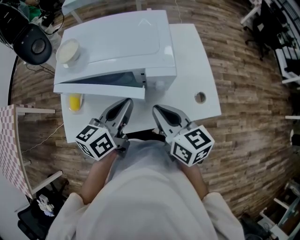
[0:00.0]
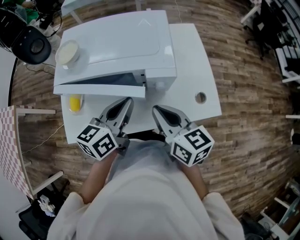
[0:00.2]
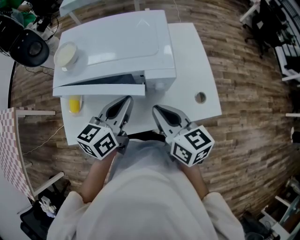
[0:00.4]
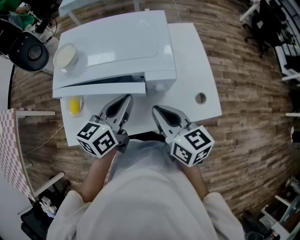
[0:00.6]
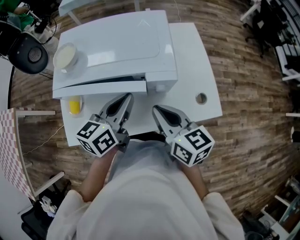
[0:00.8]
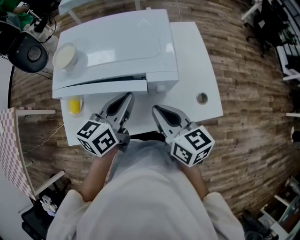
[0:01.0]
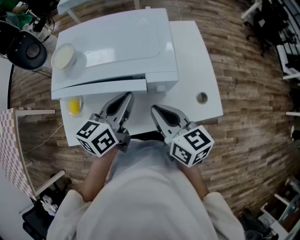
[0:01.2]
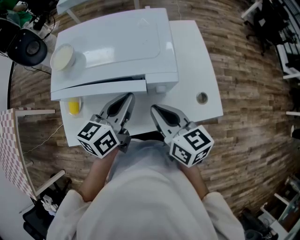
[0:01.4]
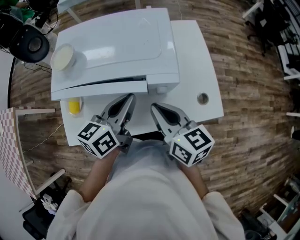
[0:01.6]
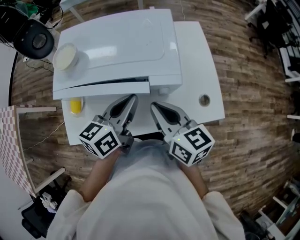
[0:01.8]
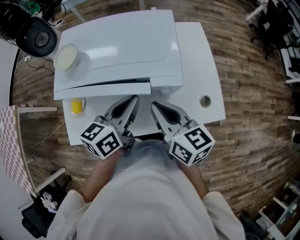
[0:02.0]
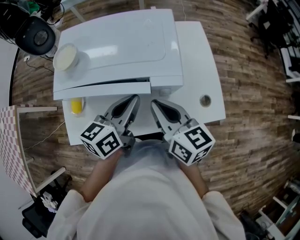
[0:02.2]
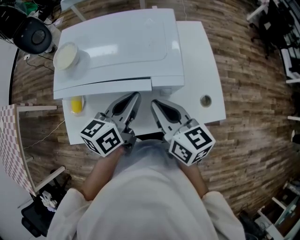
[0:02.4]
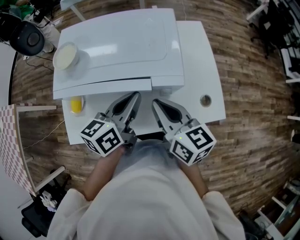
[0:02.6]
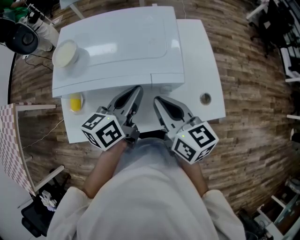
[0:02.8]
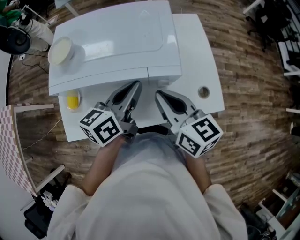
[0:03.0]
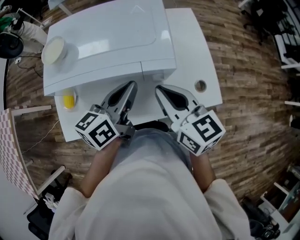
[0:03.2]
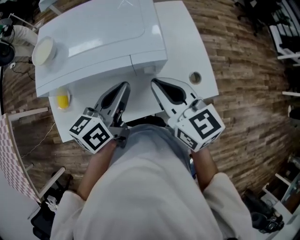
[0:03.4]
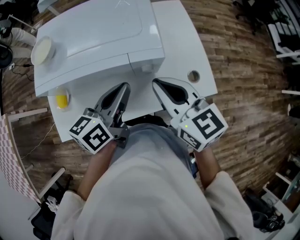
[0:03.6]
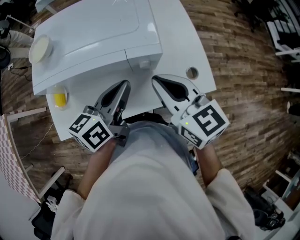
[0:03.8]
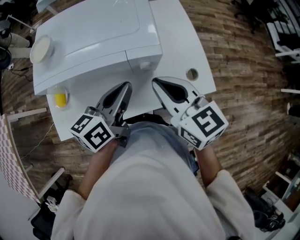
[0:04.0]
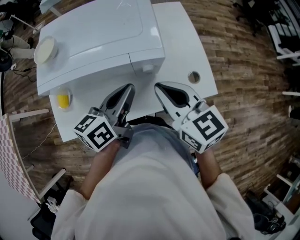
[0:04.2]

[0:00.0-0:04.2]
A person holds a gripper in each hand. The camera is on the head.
0.0 to 1.4 s: The grippers make only small movements.
1.4 to 2.8 s: There are only small adjustments of the grippers.
2.8 to 4.2 s: The right gripper changes place by approximately 5 cm; the left gripper moves backward, about 5 cm.

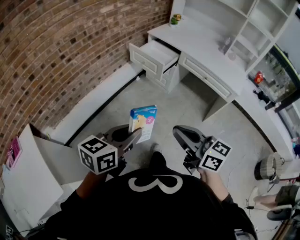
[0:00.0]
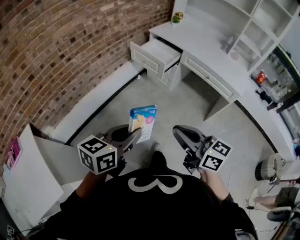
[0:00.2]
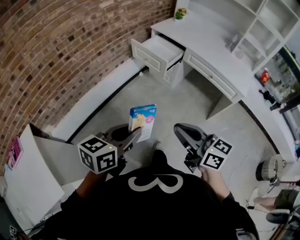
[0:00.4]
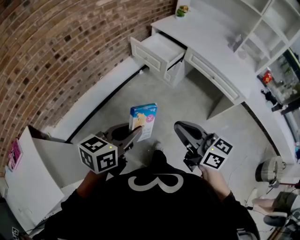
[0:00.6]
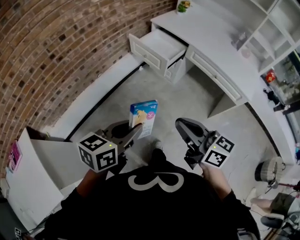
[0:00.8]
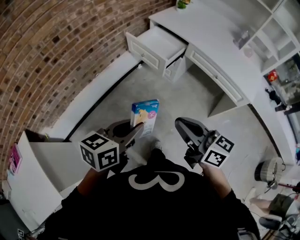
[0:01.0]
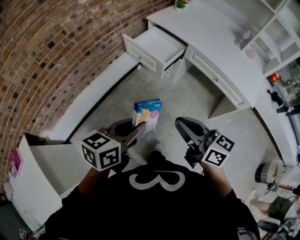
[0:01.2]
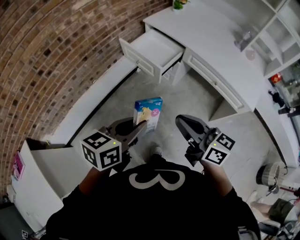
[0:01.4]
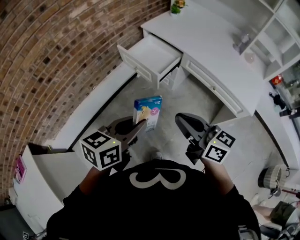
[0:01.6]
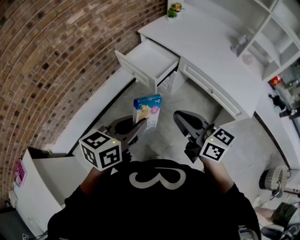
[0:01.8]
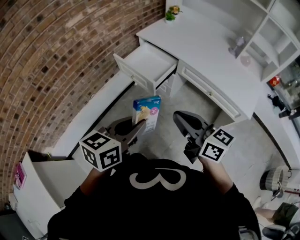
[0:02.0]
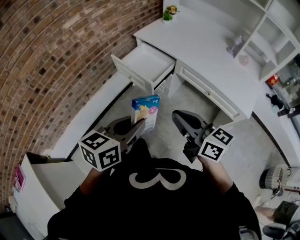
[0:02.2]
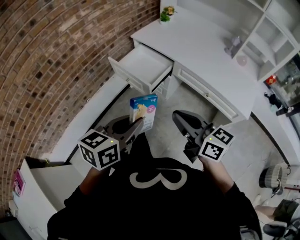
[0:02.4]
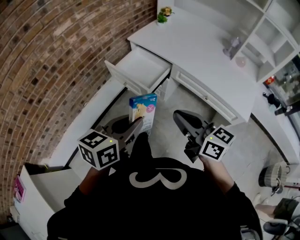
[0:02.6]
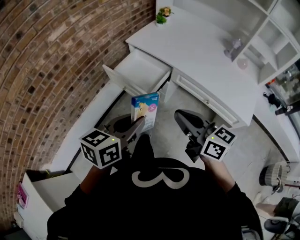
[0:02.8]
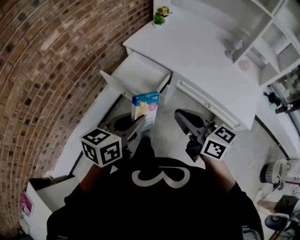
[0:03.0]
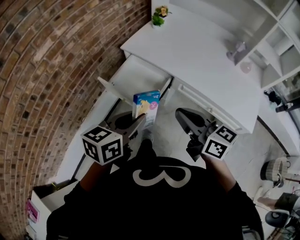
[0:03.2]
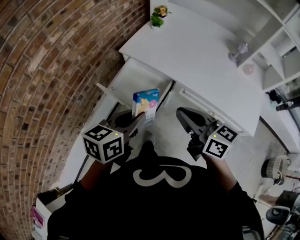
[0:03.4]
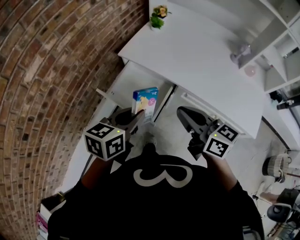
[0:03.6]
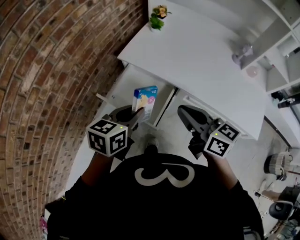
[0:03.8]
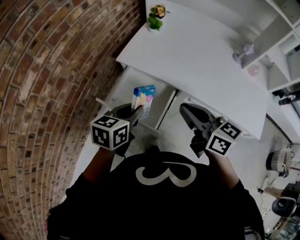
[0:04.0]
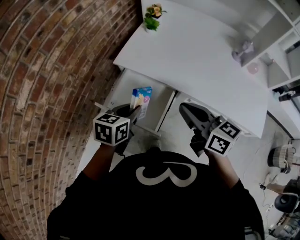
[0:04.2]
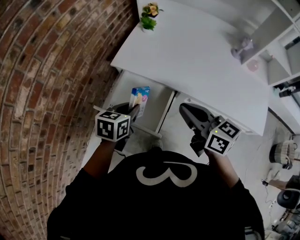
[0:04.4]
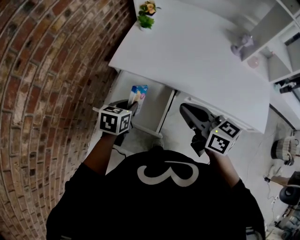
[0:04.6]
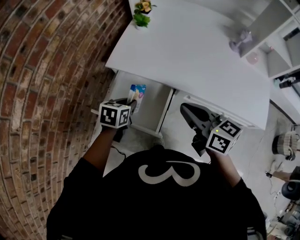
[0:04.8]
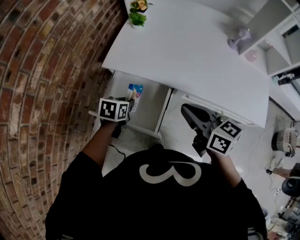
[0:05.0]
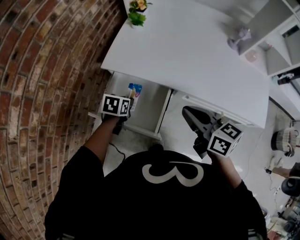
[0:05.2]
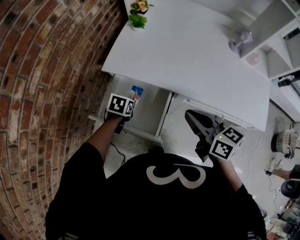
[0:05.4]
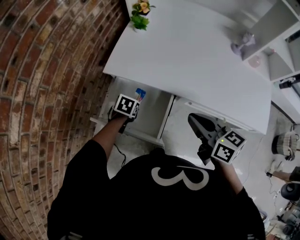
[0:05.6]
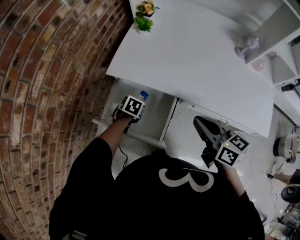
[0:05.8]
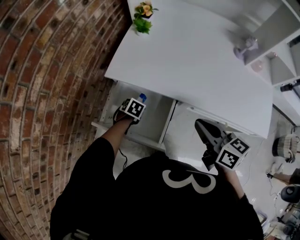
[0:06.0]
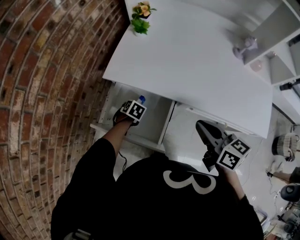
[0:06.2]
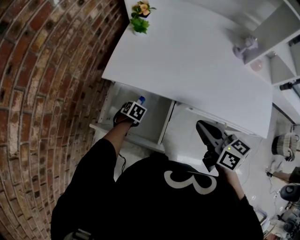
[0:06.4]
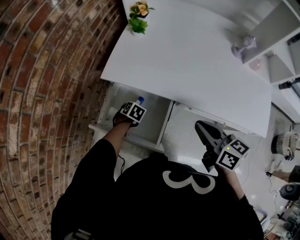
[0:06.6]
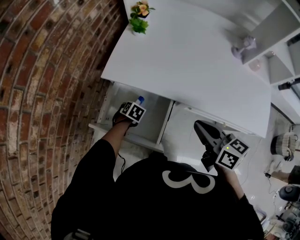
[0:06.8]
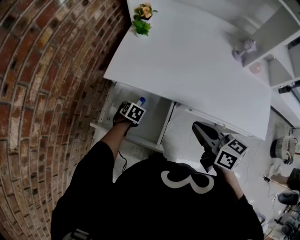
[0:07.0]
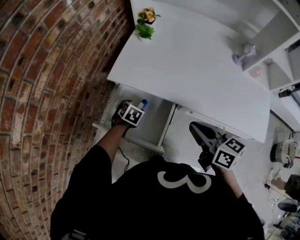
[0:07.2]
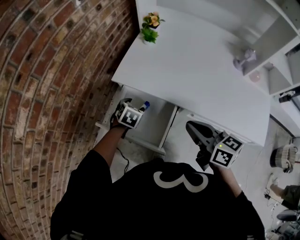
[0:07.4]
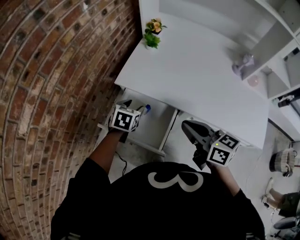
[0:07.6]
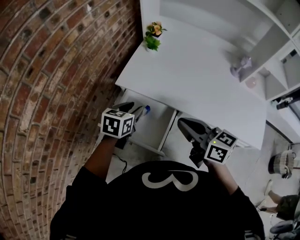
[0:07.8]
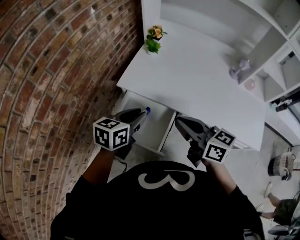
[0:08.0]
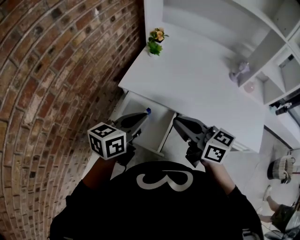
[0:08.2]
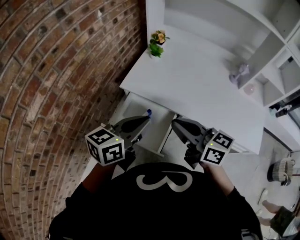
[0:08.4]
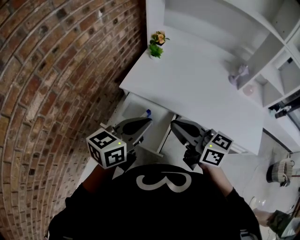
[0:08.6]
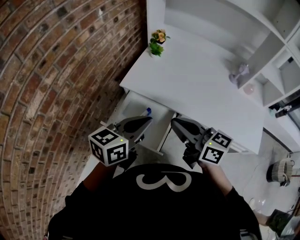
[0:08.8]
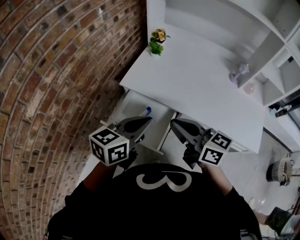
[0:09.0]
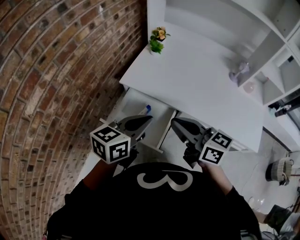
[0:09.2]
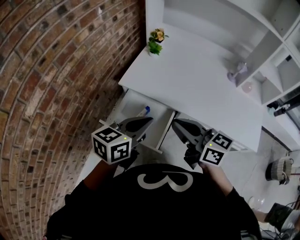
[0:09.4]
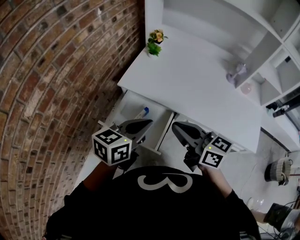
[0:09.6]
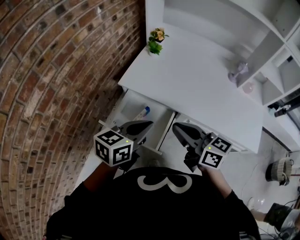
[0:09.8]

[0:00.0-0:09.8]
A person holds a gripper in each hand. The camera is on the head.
0.0 to 1.4 s: The left gripper shifts approximately 25 cm forward and to the right. Meanwhile the right gripper travels forward by roughly 25 cm.
1.4 to 2.8 s: The two grippers go about 15 cm forward.
2.8 to 4.2 s: The grippers both shift forward by some 30 cm. The left gripper changes its angle by roughly 20 degrees.
4.2 to 5.6 s: The left gripper goes roughly 25 cm downward and forward, and angles its fingers downward, by approximately 30 degrees, while the right gripper is displaced downward by some 5 cm.
5.6 to 7.0 s: The left gripper opens its fingers.
7.0 to 8.4 s: The right gripper is displaced upward and to the left by approximately 15 cm, and swivels about 20 degrees, while the left gripper heads upward, covering approximately 40 cm, points its fingers approximately 60 degrees further upward, and closes its fingers.
8.4 to 9.8 s: The grippers stay close to where they were, moving slightly.

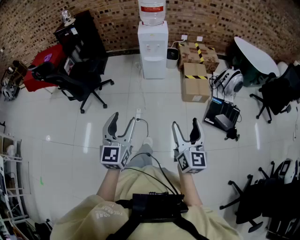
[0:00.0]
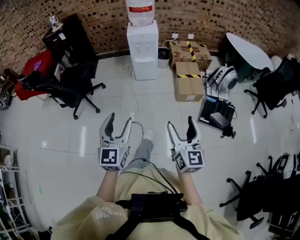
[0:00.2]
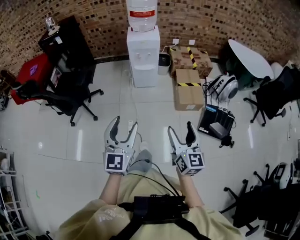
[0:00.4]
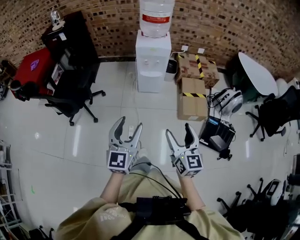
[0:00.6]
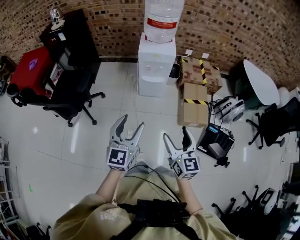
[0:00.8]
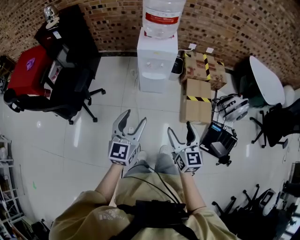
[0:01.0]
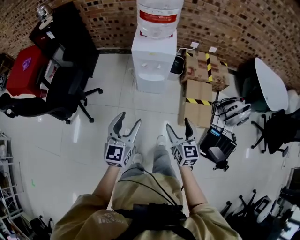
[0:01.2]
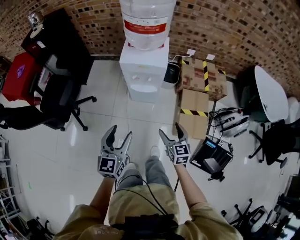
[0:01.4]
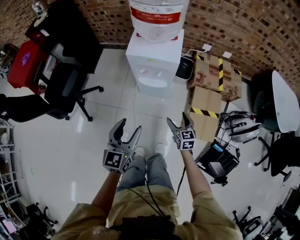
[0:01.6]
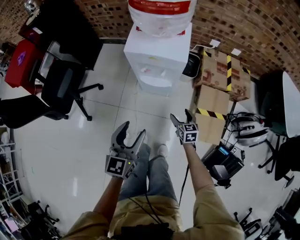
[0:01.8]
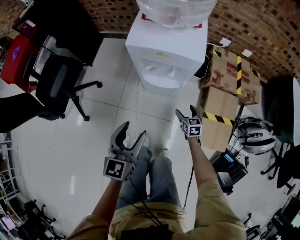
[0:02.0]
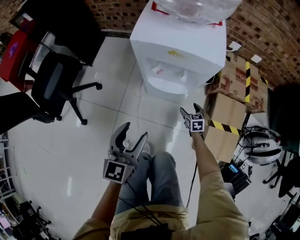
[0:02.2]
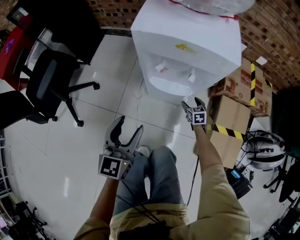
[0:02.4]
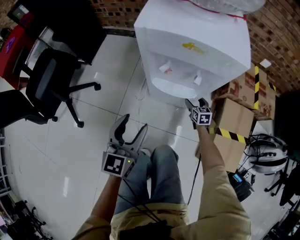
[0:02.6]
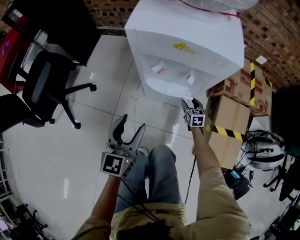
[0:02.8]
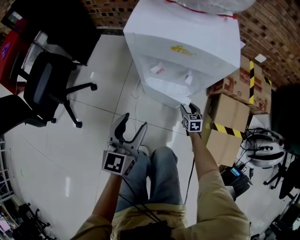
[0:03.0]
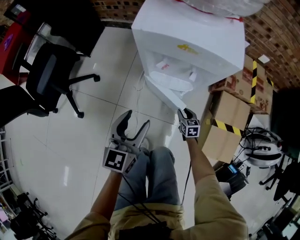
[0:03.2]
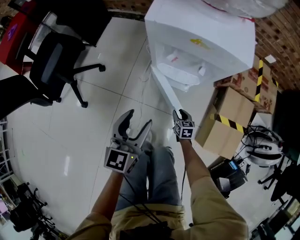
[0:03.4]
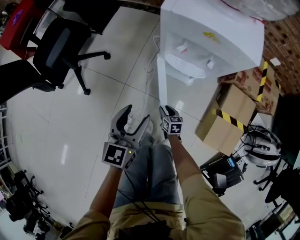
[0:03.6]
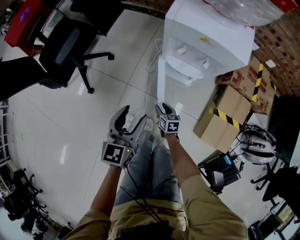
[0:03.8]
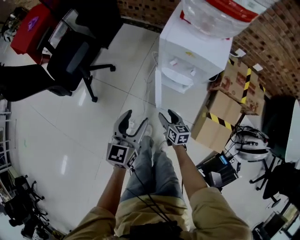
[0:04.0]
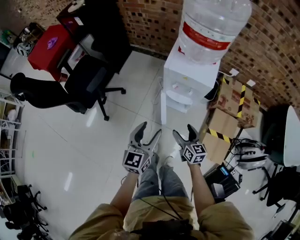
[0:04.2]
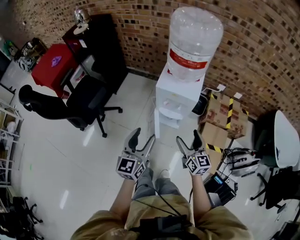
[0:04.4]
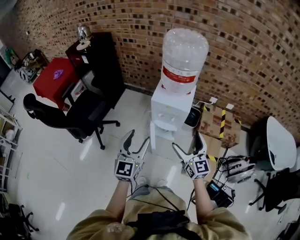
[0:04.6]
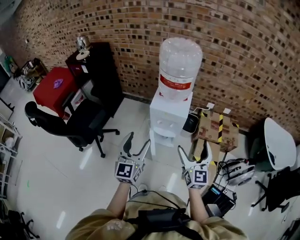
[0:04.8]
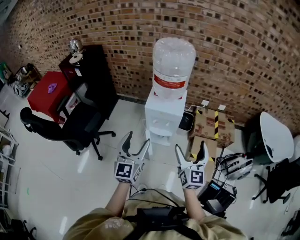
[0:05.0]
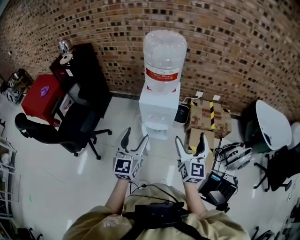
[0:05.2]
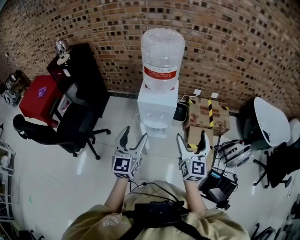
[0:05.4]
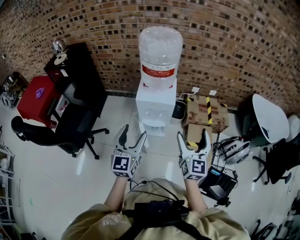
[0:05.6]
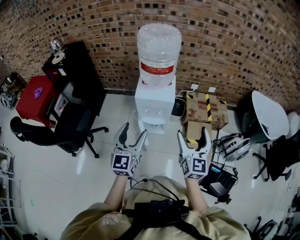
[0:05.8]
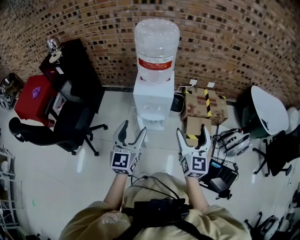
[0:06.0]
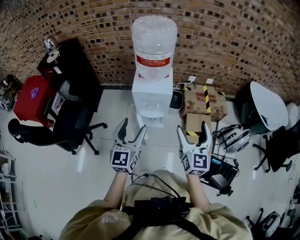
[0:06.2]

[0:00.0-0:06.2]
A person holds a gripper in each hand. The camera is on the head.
0.0 to 1.6 s: The pair of grippers is taken forward, some 60 cm. The right gripper is displaced downward by roughly 35 cm, and turns by roughly 40 degrees.
1.6 to 3.2 s: The right gripper moves downward, about 40 cm, and closes up. Meanwhile the left gripper is displaced downward and forward by some 30 cm.
3.2 to 4.6 s: The left gripper travels upward by about 40 cm; the right gripper moves upward, roughly 70 cm, tilts its fingers approximately 40 degrees upward, and opens.
4.6 to 6.2 s: The right gripper is displaced upward and to the right by some 10 cm, and changes its angle by some 30 degrees.

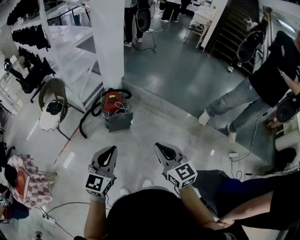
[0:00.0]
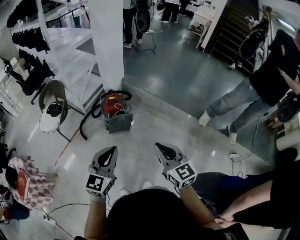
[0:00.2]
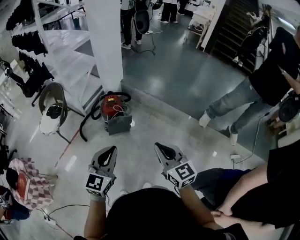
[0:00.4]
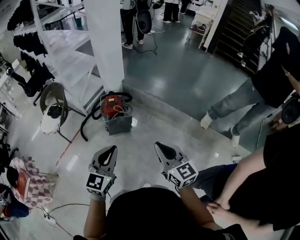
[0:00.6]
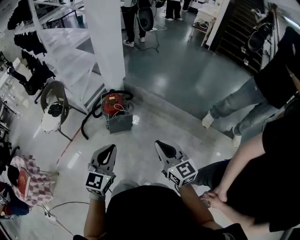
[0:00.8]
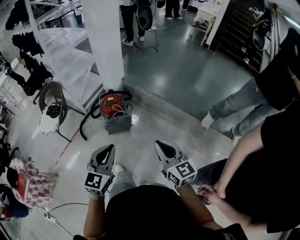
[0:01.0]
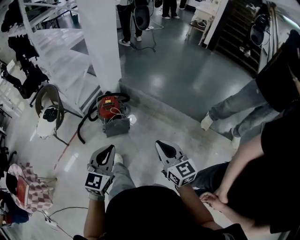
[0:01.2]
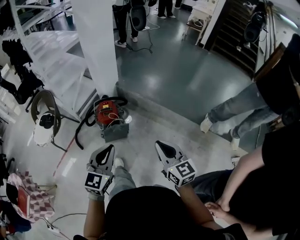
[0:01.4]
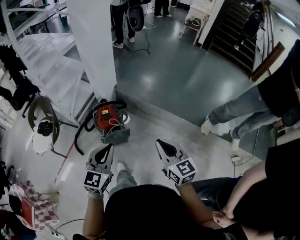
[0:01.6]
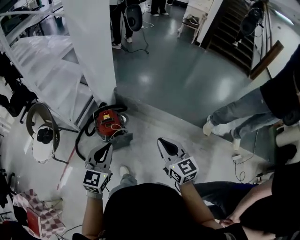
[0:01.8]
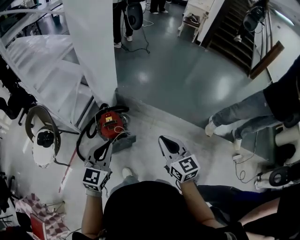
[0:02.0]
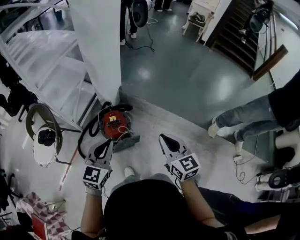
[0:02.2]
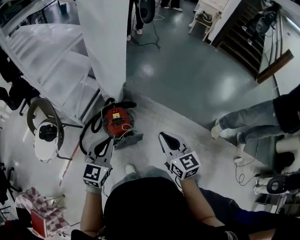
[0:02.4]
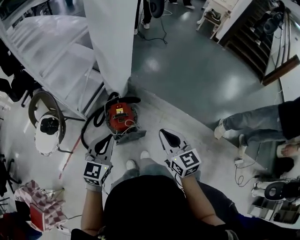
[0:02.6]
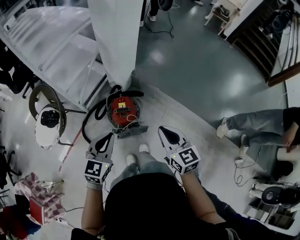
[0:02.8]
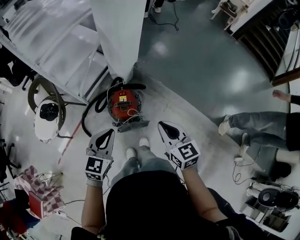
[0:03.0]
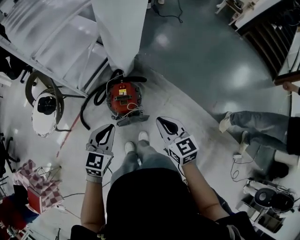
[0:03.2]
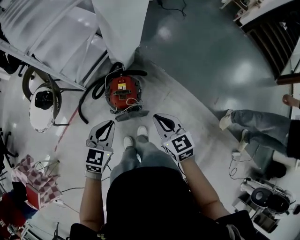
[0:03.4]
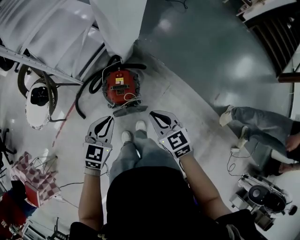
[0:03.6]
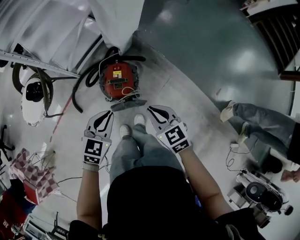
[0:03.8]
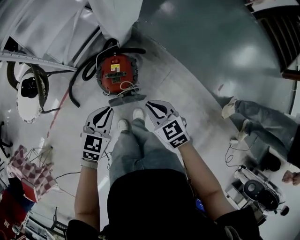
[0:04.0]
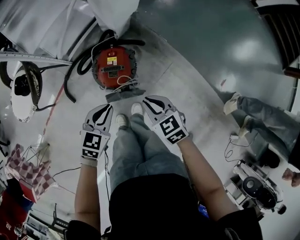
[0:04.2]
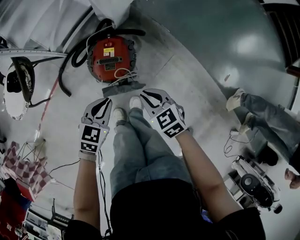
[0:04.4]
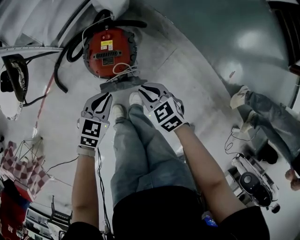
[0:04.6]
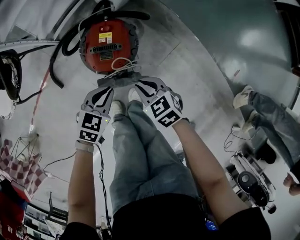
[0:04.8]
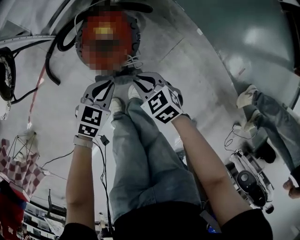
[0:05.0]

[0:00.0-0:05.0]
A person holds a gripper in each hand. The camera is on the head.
0.0 to 1.6 s: Both grippers travel together forward, about 25 cm.
1.6 to 3.4 s: The right gripper goes roughly 35 cm forward, to the left and downward, and turns by roughly 30 degrees, while the left gripper travels forward, downward and to the left by about 30 cm.
3.4 to 5.0 s: Both grippers move downward, approximately 40 cm. The left gripper rotates roughly 20 degrees. The right gripper swivels roughly 30 degrees.
